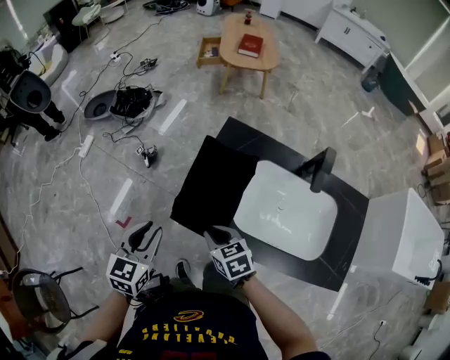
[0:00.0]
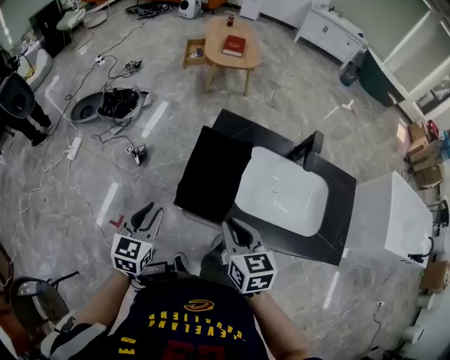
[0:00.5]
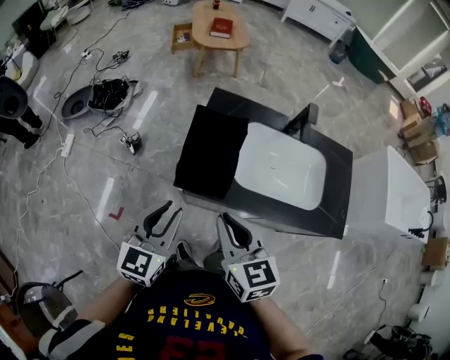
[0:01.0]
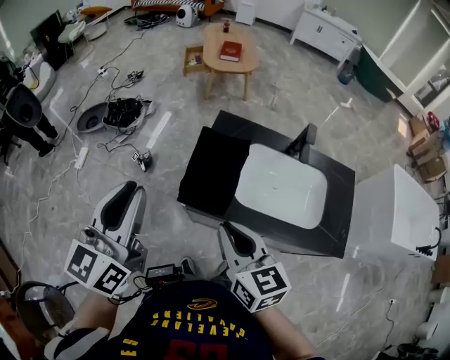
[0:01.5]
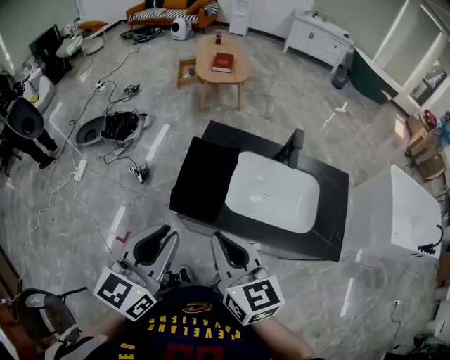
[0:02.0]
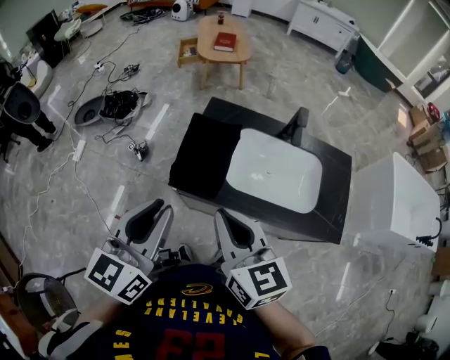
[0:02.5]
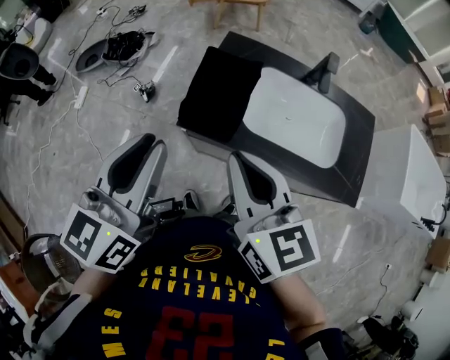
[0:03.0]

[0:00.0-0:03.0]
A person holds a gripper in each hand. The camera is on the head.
0:00.0 to 0:01.5: The grippers both shift upward by about 25 cm. The left gripper tilts its fingers some 30 degrees upward. The right gripper changes its angle by approximately 30 degrees.
0:01.5 to 0:03.0: The left gripper heads to the right and downward, covering roughly 10 cm.

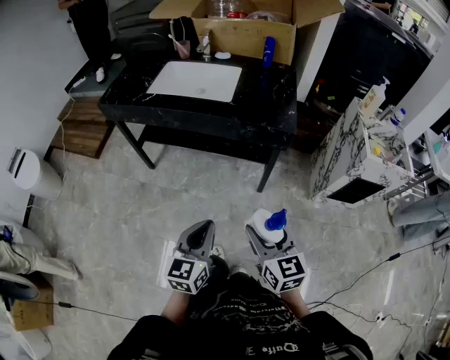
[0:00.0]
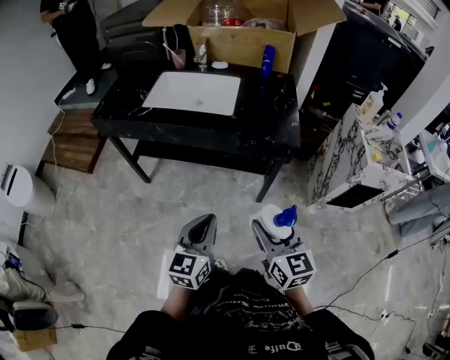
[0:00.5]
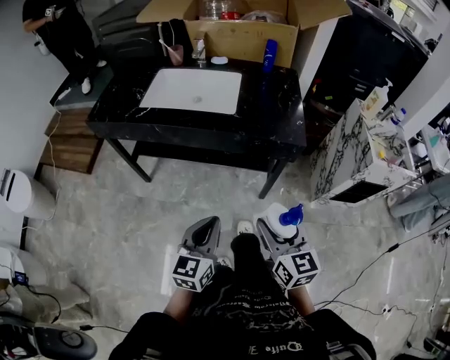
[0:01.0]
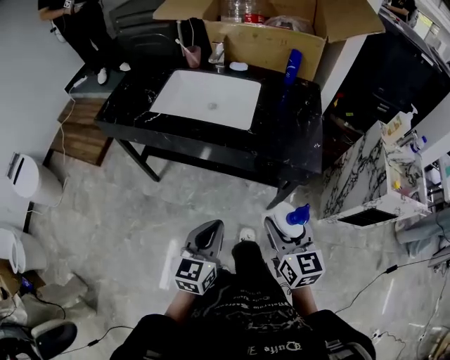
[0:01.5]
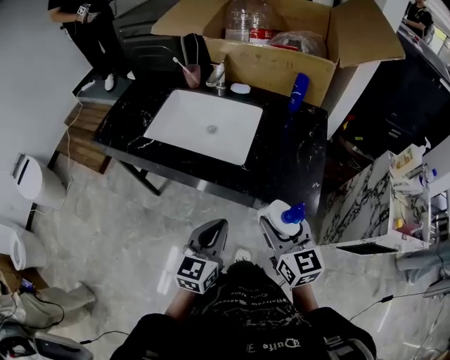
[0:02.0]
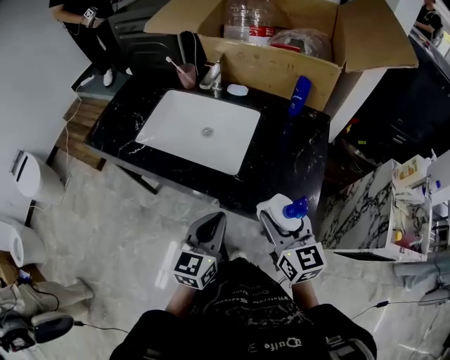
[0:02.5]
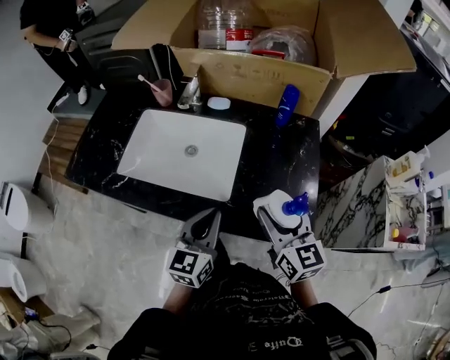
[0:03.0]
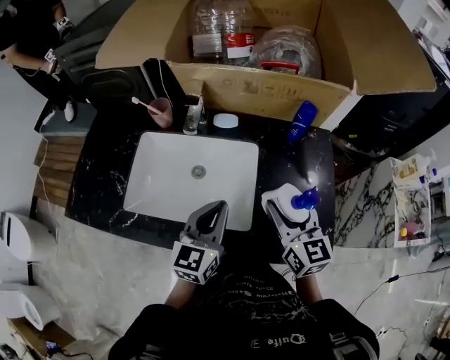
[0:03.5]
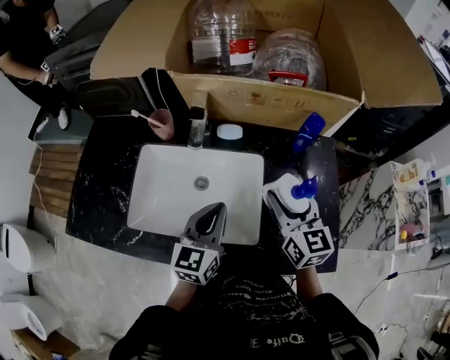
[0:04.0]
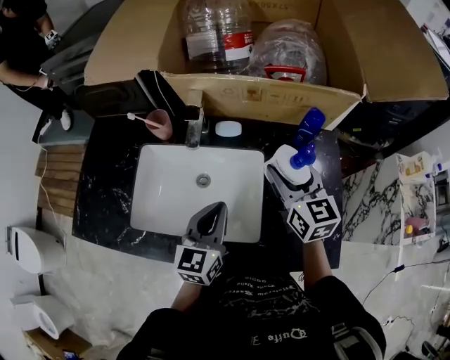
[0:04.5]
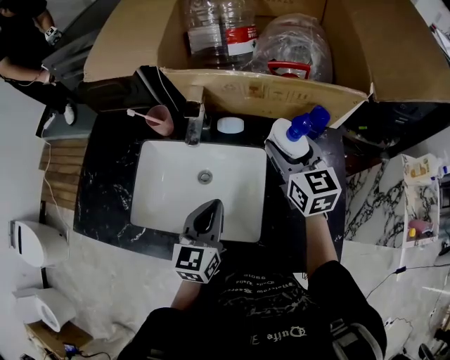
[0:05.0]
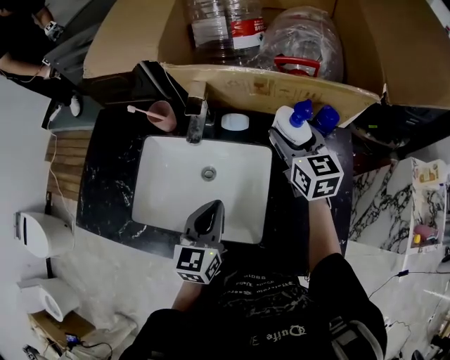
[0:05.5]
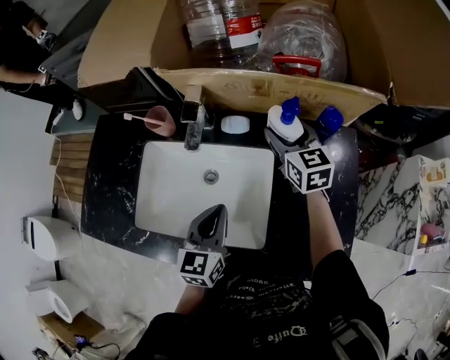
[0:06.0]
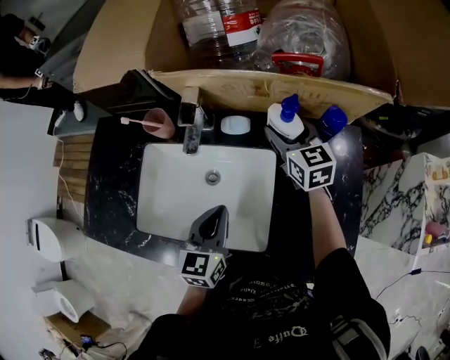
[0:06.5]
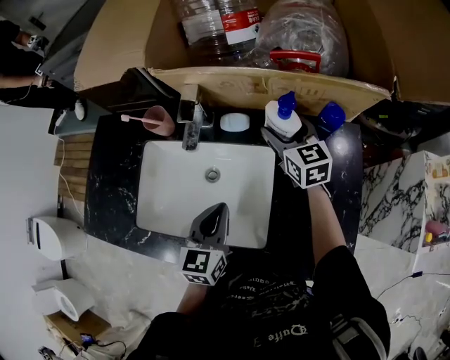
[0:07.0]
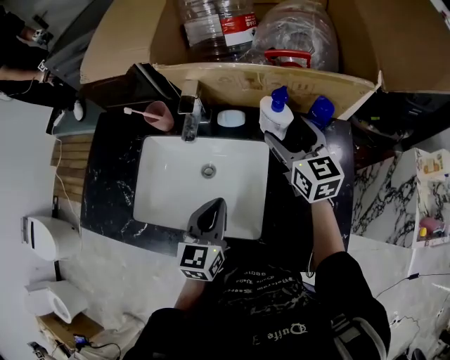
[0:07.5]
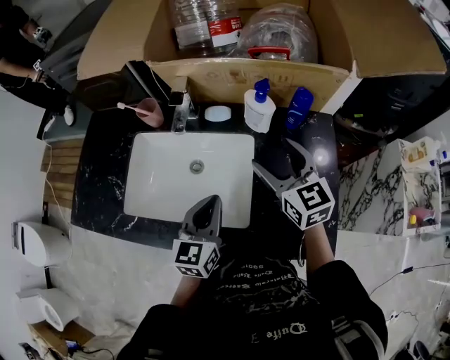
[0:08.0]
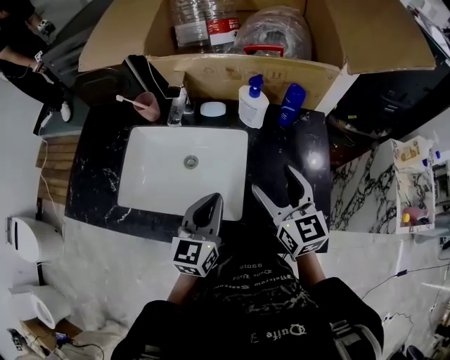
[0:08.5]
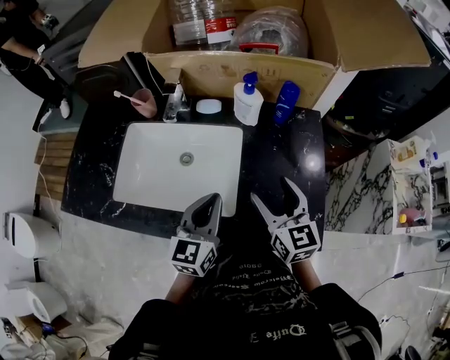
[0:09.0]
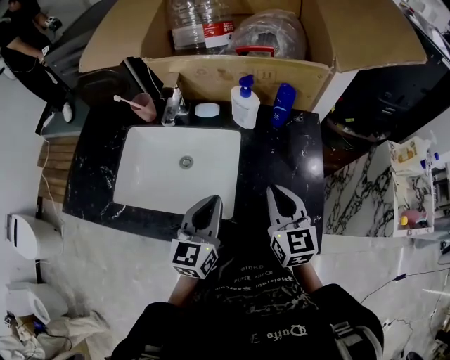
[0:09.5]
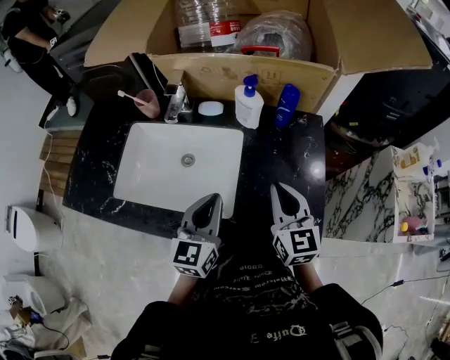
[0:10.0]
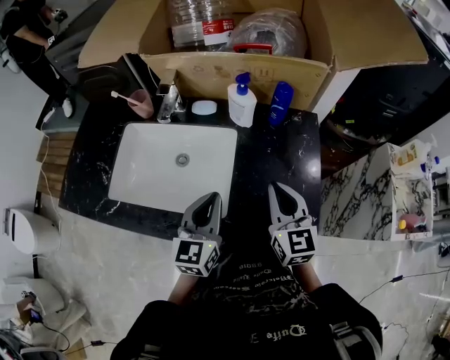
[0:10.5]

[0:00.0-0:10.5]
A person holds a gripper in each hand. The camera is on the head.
0:00.0 to 0:02.0: The grippers both shift forward by approximately 30 cm.
0:02.0 to 0:04.0: The grippers both shift forward by about 35 cm.
0:04.0 to 0:06.5: The right gripper travels forward by about 20 cm. The left gripper moves about 5 cm.
0:06.5 to 0:08.5: The right gripper travels backward by about 25 cm; the left gripper moves backward, approximately 10 cm.
0:08.5 to 0:10.5: The right gripper goes approximately 5 cm to the right, and closes.

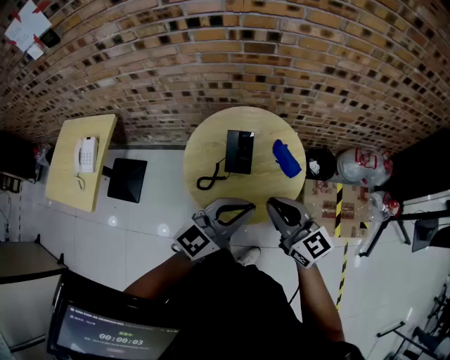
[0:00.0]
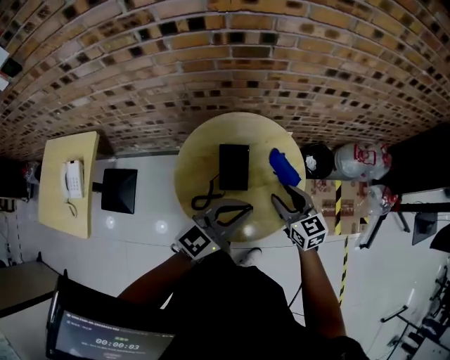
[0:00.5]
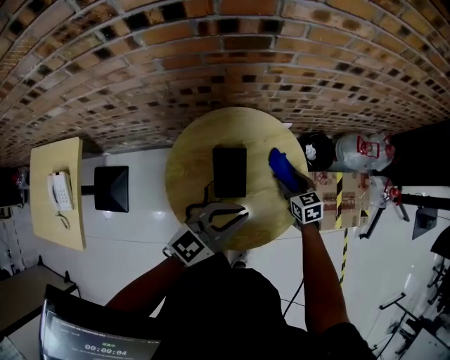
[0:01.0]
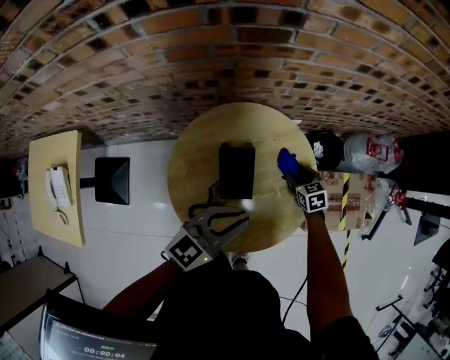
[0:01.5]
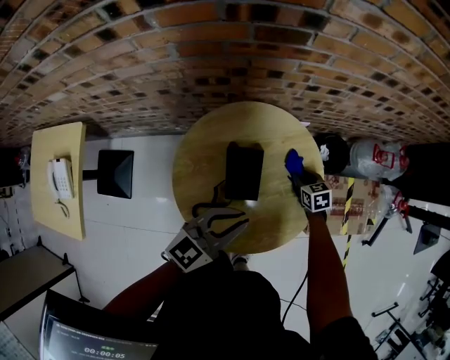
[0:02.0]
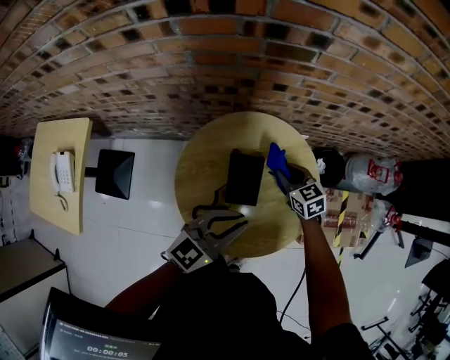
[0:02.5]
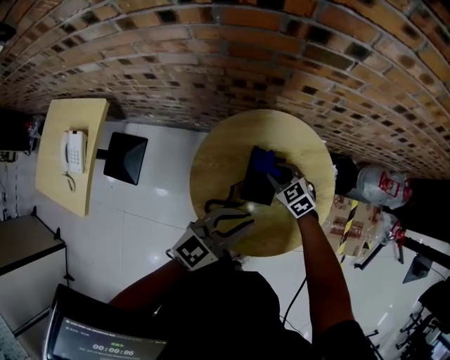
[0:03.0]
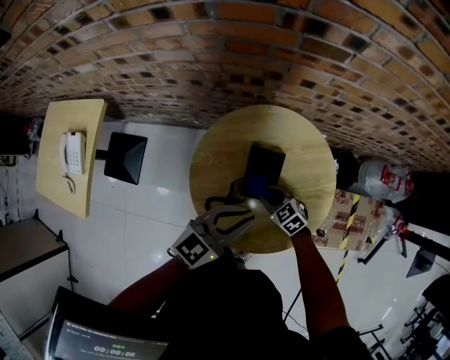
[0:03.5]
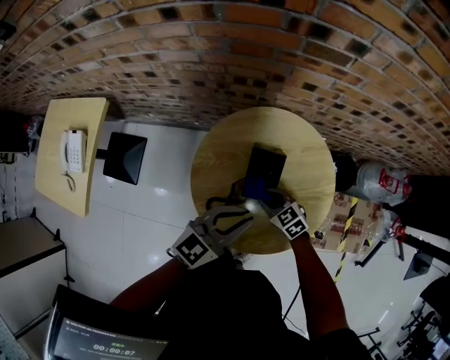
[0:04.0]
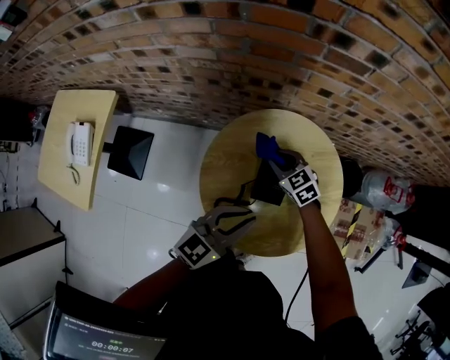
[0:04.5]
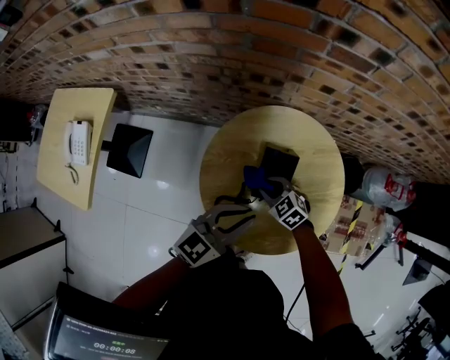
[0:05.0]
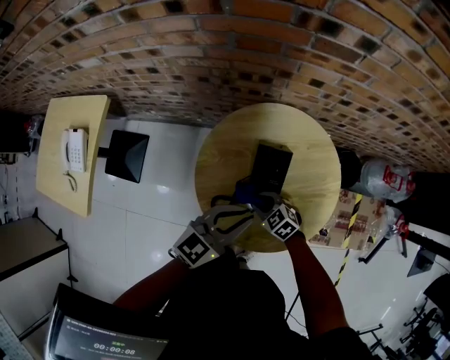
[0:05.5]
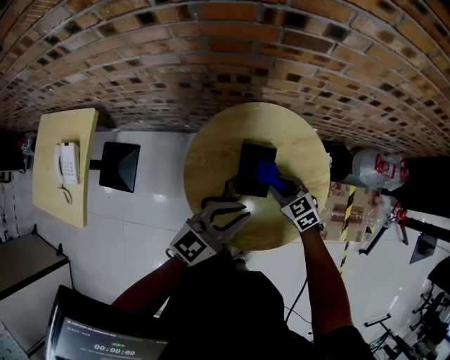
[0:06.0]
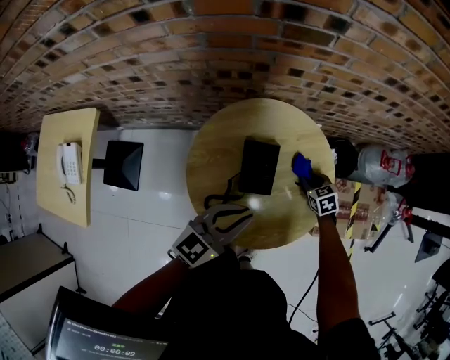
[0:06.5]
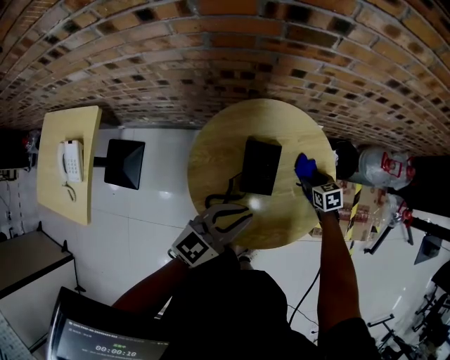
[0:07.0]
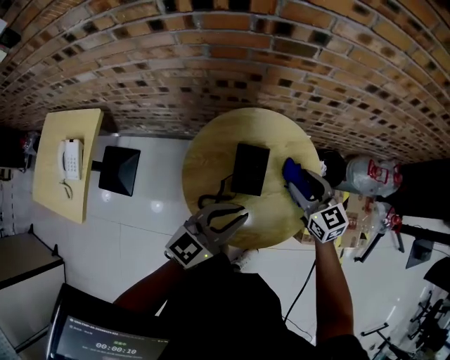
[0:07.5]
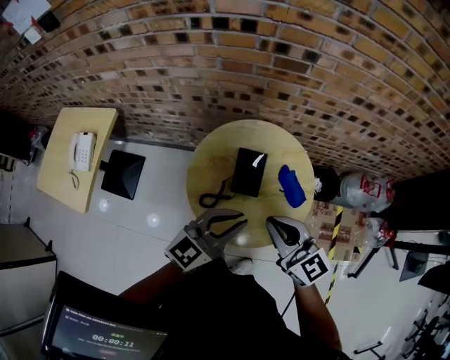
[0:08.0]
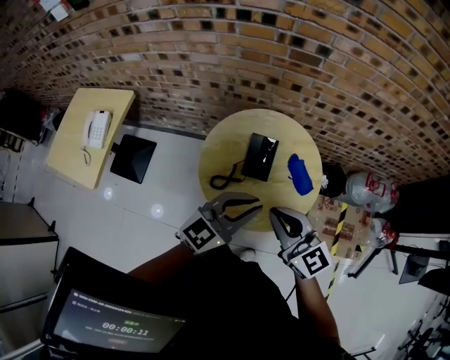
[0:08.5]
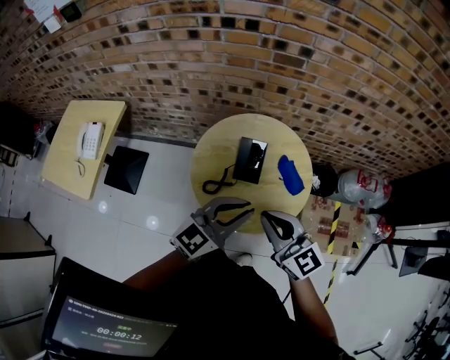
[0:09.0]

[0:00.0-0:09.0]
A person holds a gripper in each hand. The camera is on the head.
0:00.0 to 0:02.0: The right gripper is displaced downward and forward by some 50 cm, tilts its fingers about 50 degrees downward, and opens and closes again. Meanwhile the left gripper moves forward, downward and to the left, approximately 25 cm.
0:02.0 to 0:04.5: The left gripper heads to the left, covering roughly 5 cm. The right gripper moves to the left and upward, some 25 cm, and turns by roughly 40 degrees.
0:04.5 to 0:07.0: The right gripper moves to the right and downward, about 25 cm, swivels approximately 40 degrees, and opens its fingers.
0:07.0 to 0:09.0: The left gripper moves upward and backward, some 20 cm. The right gripper travels upward and backward by about 50 cm, points its fingers roughly 50 degrees further upward, and closes.

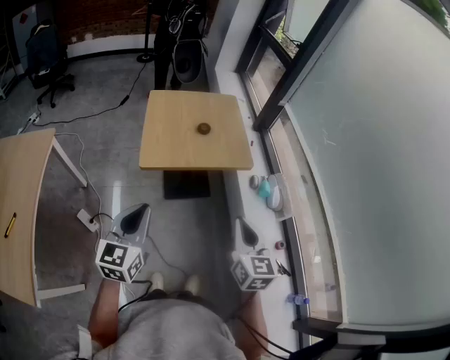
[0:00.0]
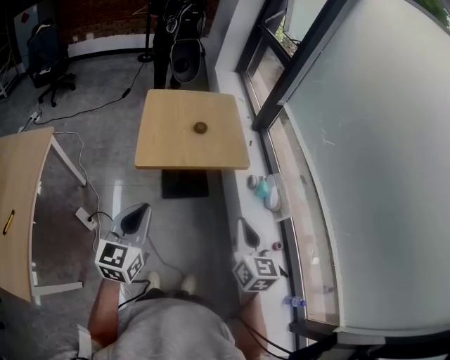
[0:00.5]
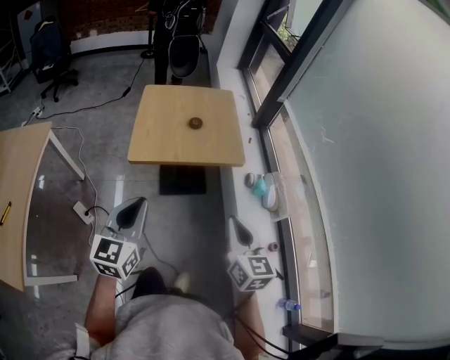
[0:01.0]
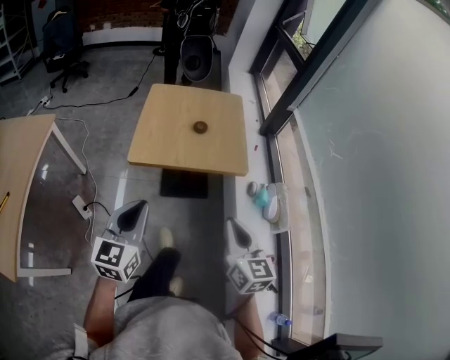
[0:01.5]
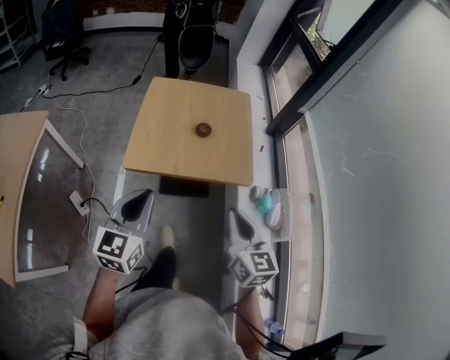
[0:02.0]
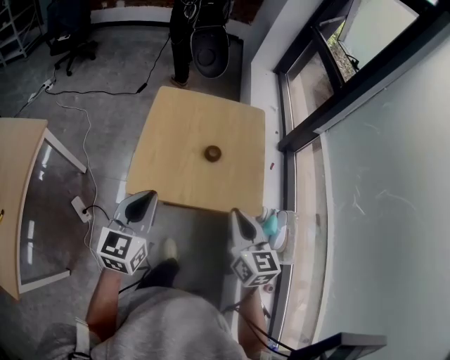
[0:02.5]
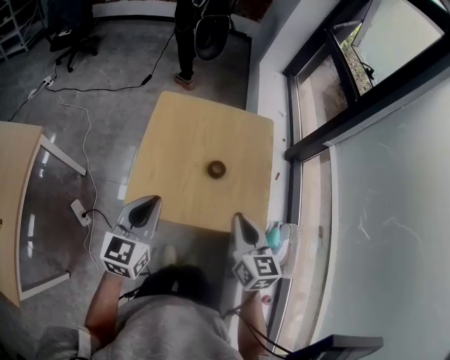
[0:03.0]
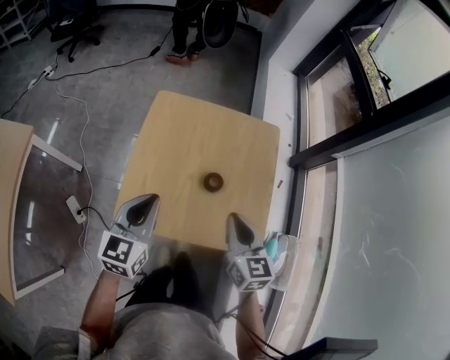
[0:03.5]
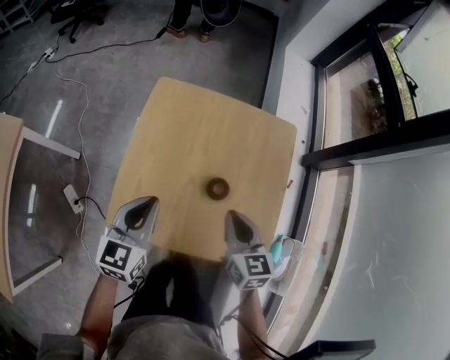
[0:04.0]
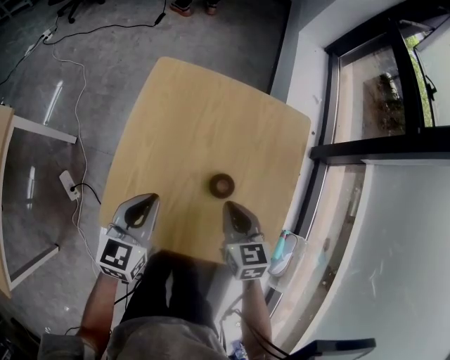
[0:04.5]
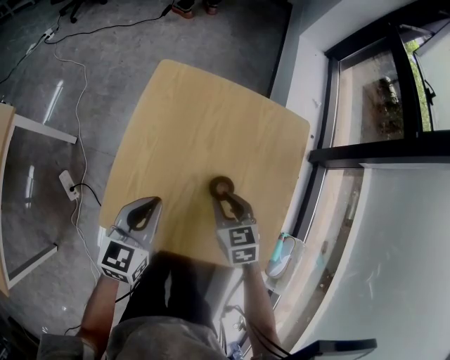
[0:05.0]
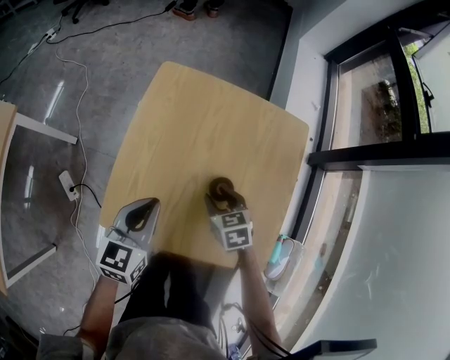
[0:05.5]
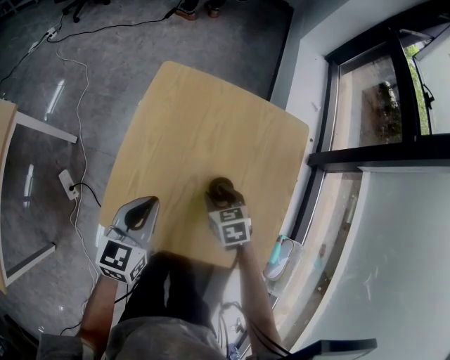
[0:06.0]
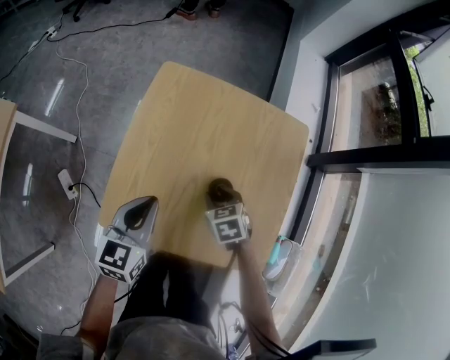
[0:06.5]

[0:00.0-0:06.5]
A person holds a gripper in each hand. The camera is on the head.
0:00.0 to 0:02.0: The left gripper moves forward and to the right, approximately 15 cm. The right gripper goes approximately 15 cm forward.
0:02.0 to 0:04.5: The two grippers go about 40 cm forward and downward. The right gripper turns by approximately 30 degrees.
0:04.5 to 0:06.5: The right gripper is displaced downward by about 10 cm, rotates some 30 degrees, and opens its fingers.
